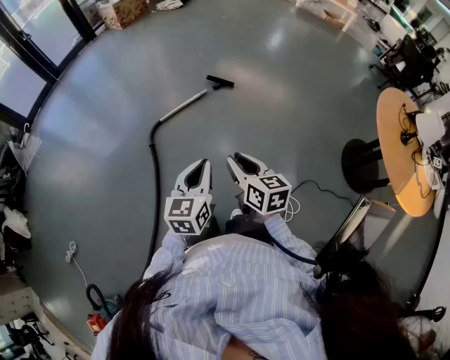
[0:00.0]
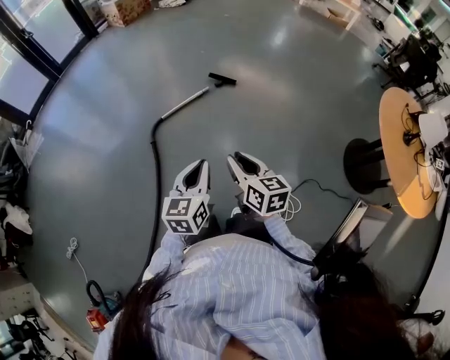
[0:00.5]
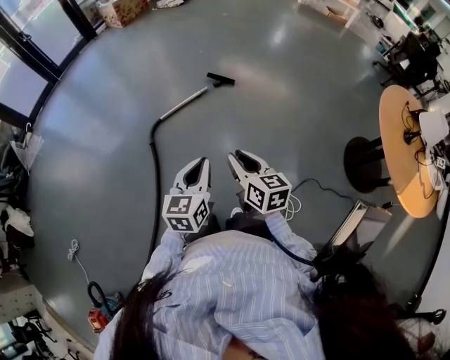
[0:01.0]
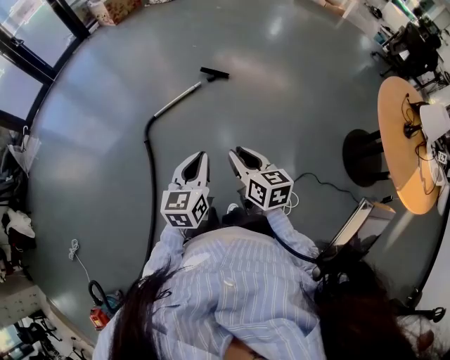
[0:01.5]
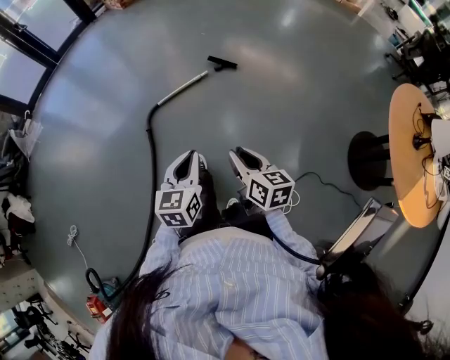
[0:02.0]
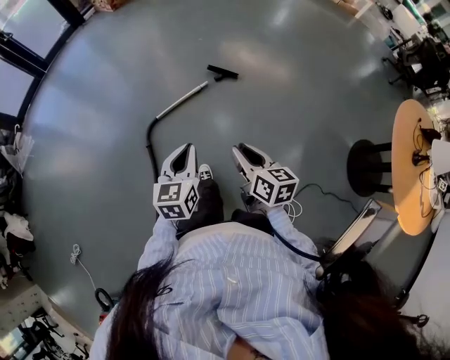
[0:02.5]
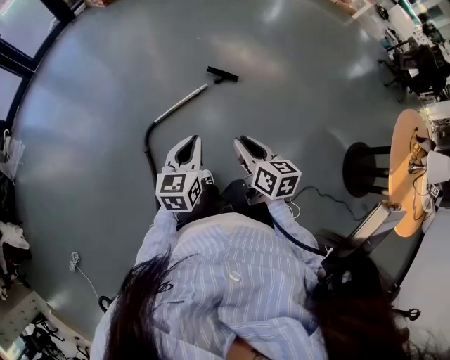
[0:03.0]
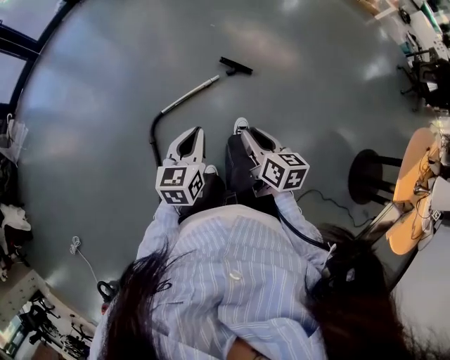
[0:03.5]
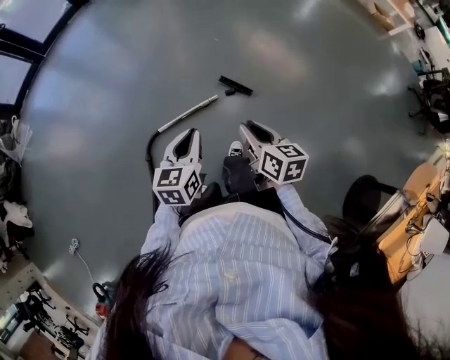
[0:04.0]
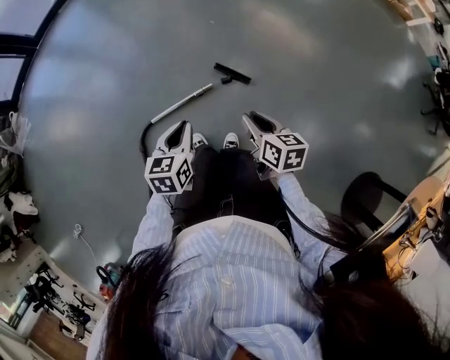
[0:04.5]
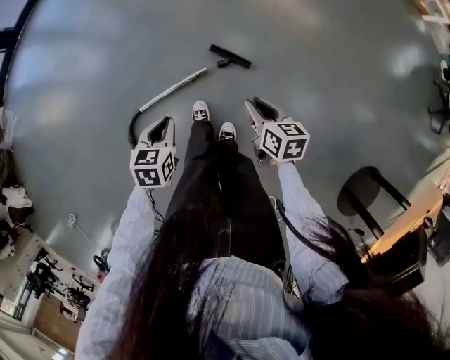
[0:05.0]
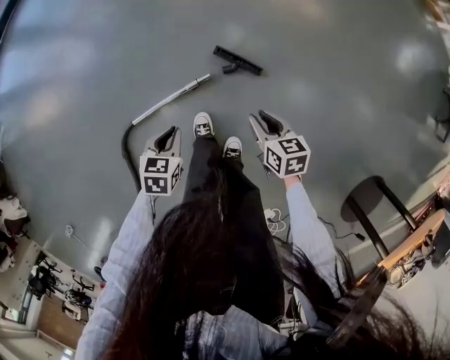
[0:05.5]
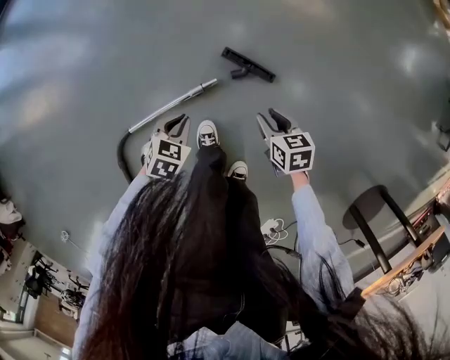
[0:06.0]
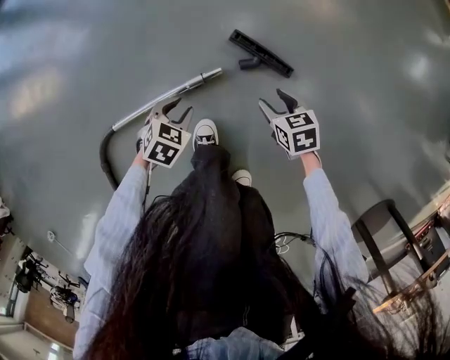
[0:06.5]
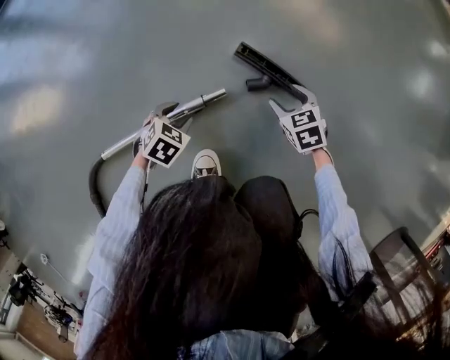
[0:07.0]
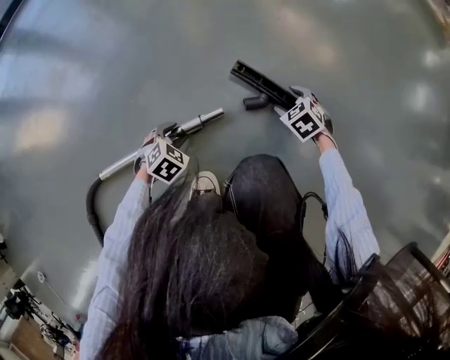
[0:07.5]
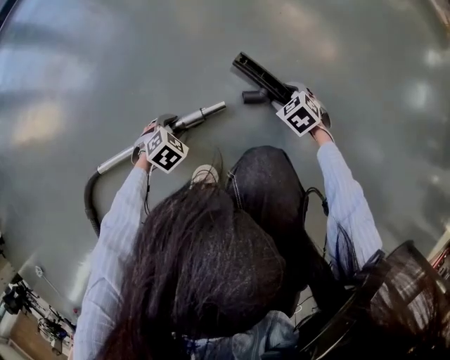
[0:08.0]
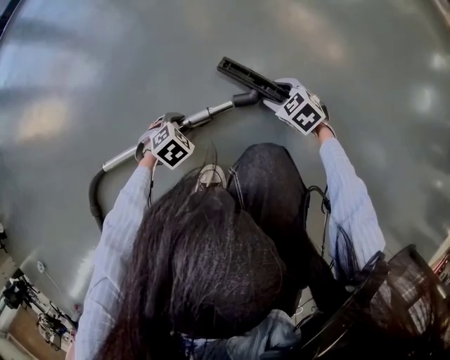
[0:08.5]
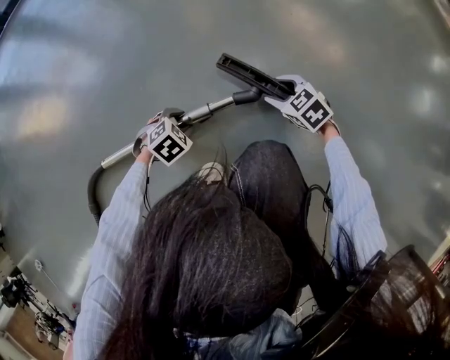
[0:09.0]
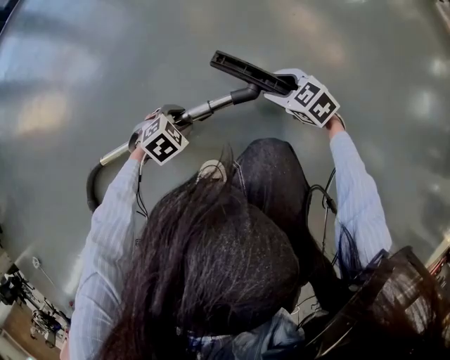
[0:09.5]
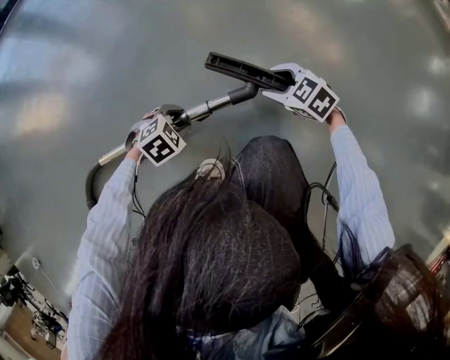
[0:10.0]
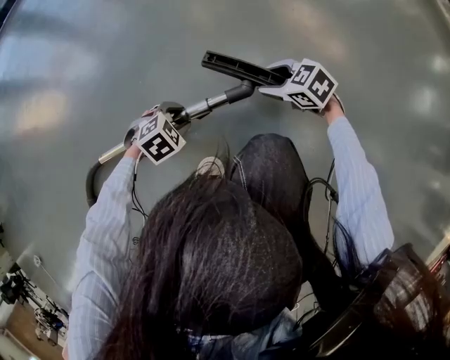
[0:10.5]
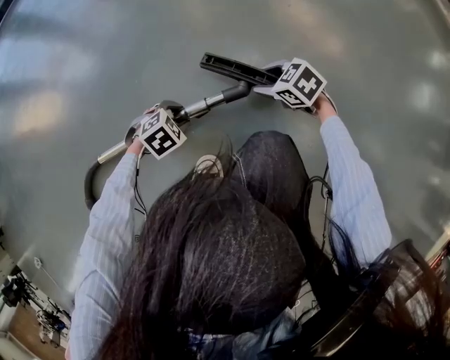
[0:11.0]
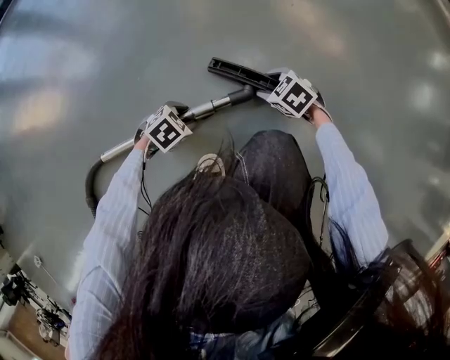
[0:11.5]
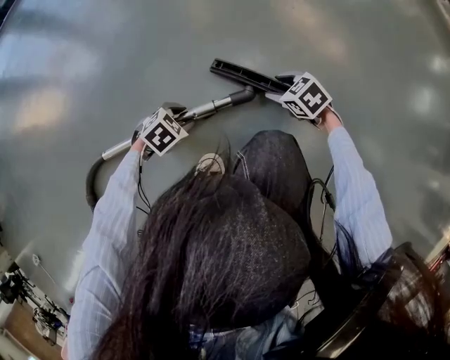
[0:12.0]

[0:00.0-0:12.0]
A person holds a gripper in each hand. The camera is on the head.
0:00.0 to 0:02.0: The left gripper shifts approximately 5 cm forward, while the right gripper heads to the right and forward, covering about 10 cm.
0:02.0 to 0:04.0: The two grippers travel together, forward, approximately 60 cm.
0:04.0 to 0:06.0: Both grippers move downward and forward, approximately 60 cm. The left gripper tilts its fingers roughly 30 degrees downward; the right gripper swivels approximately 30 degrees.
0:06.0 to 0:08.0: The two grippers go about 40 cm downward. The left gripper opens its fingers. The right gripper twists approximately 50 degrees counterclockwise, seen from behind, and opens up.
0:08.0 to 0:10.0: The right gripper changes place by roughly 10 cm, and swivels roughly 30 degrees.
0:10.0 to 0:12.0: There are only small adjustments of the grippers.

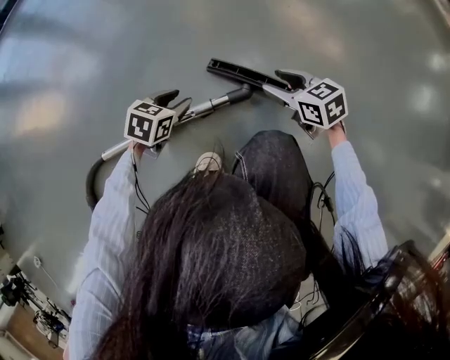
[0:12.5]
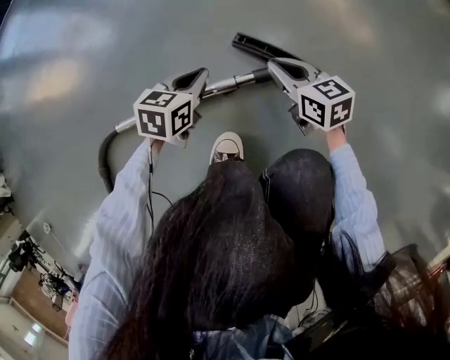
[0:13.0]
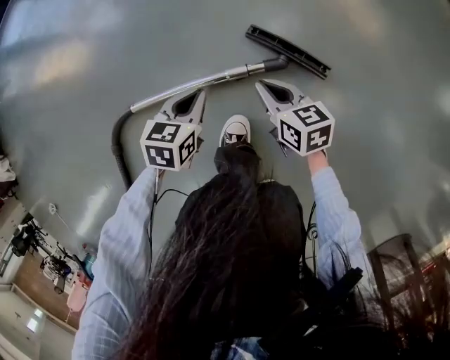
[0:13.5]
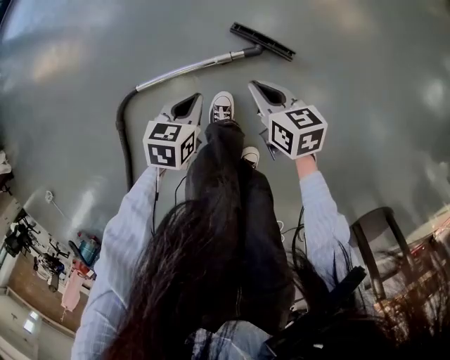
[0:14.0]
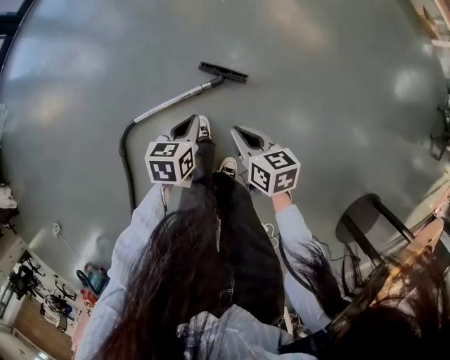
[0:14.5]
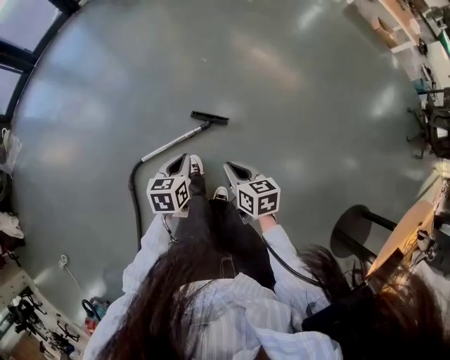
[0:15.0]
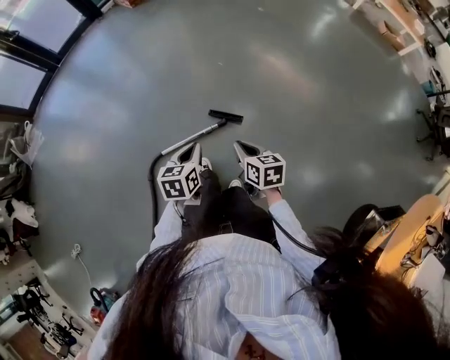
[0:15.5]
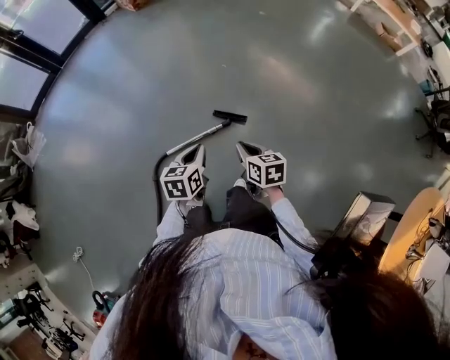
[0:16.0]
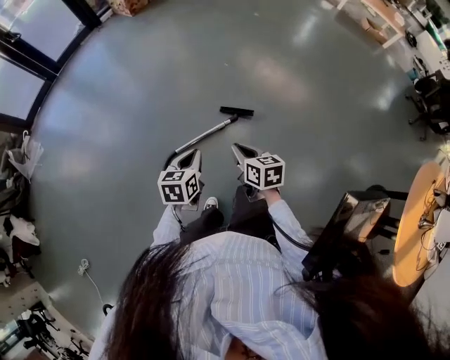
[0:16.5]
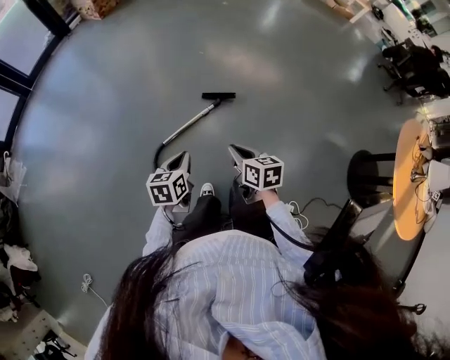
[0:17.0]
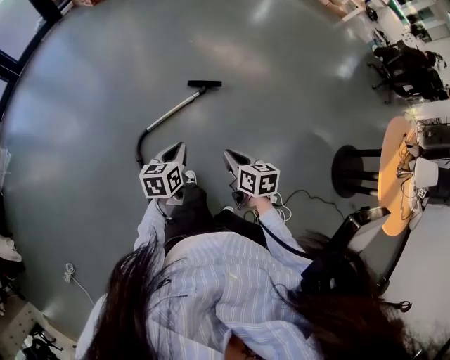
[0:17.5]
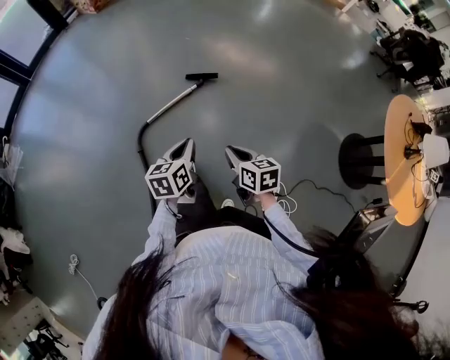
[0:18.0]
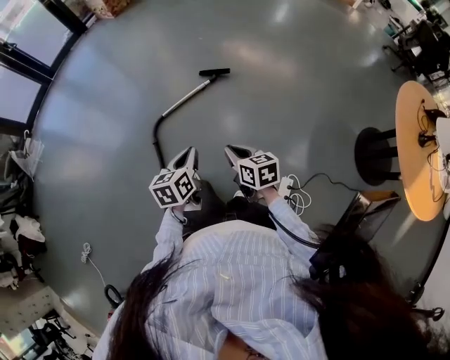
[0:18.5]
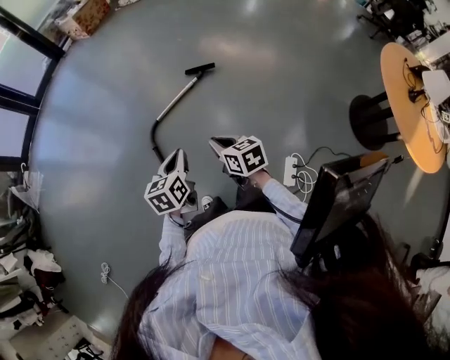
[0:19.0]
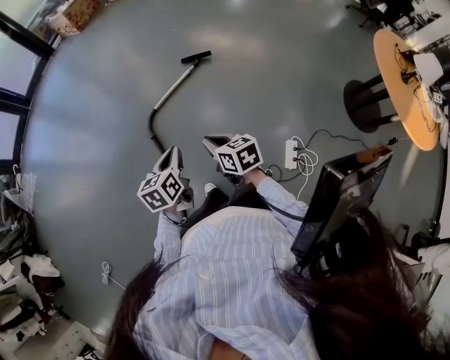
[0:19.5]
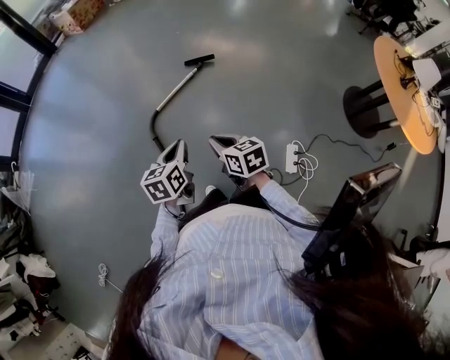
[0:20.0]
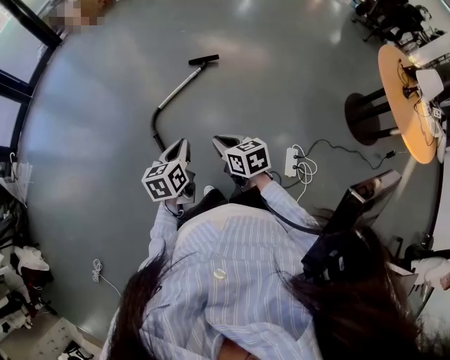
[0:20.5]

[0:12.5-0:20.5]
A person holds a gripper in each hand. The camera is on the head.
0:12.5 to 0:14.5: The left gripper heads upward, covering about 50 cm, and closes its fingers. Meanwhile the right gripper moves upward and backward, some 50 cm, swivels roughly 30 degrees, and closes up.
0:14.5 to 0:16.5: The two grippers go about 40 cm upward, backward and to the left.
0:16.5 to 0:18.5: Both grippers travel together backward, about 40 cm.
0:18.5 to 0:20.5: Both grippers move to the left, about 20 cm.

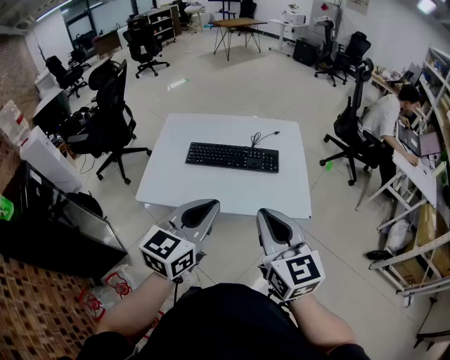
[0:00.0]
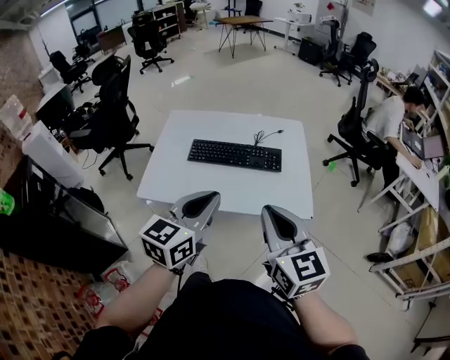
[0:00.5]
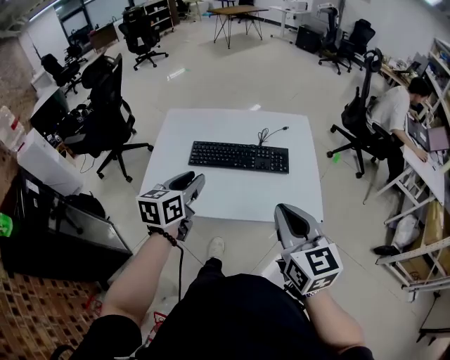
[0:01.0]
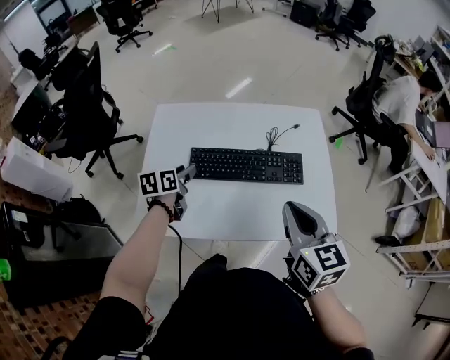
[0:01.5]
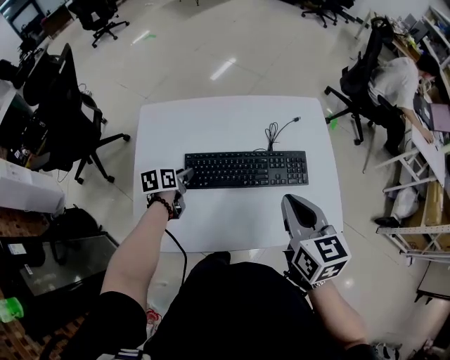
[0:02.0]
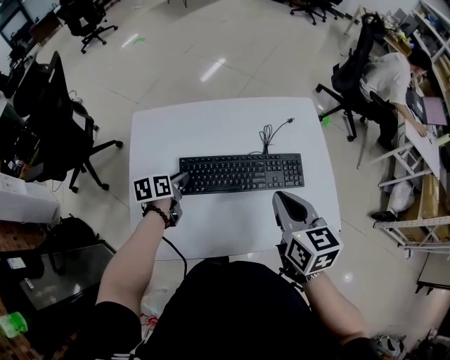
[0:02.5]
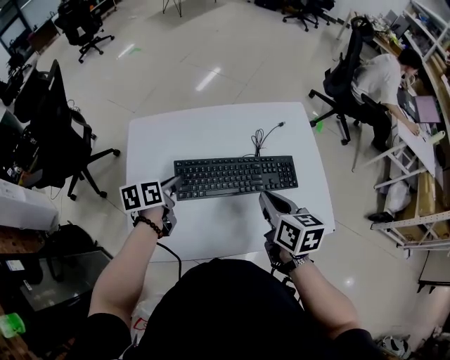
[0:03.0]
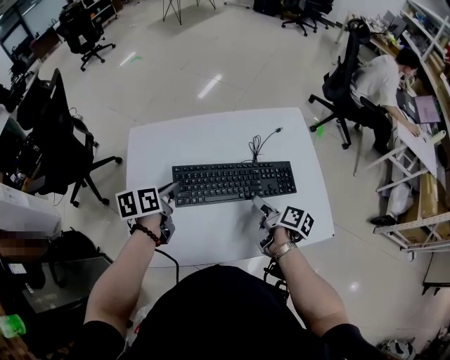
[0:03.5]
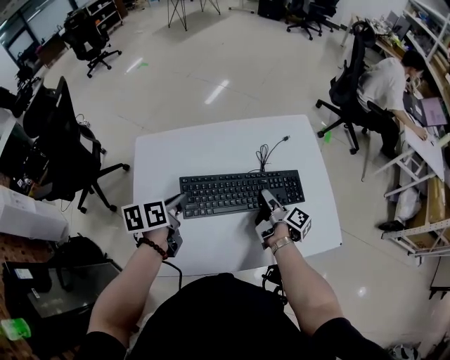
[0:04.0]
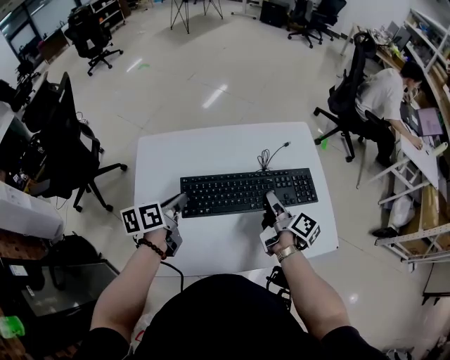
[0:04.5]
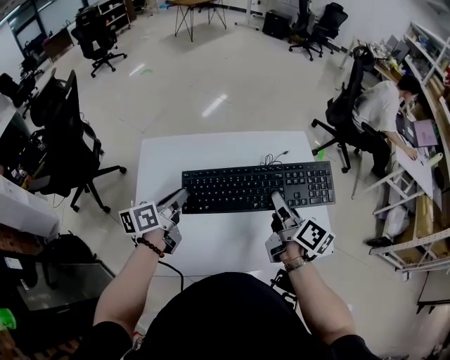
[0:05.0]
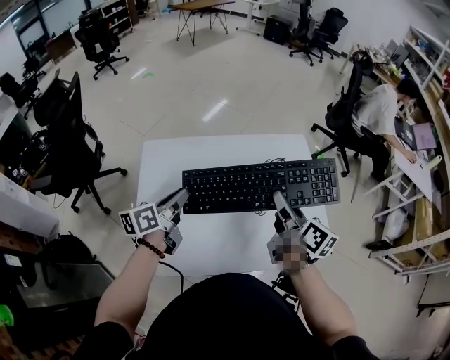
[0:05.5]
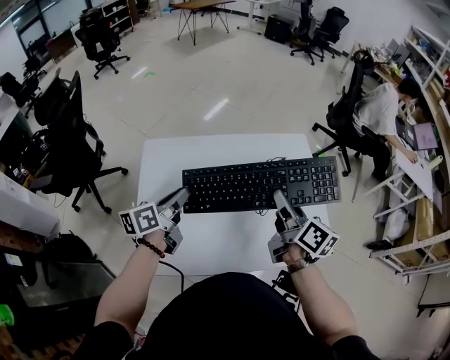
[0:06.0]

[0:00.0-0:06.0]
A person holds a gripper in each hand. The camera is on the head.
0:00.0 to 0:02.0: The left gripper travels forward, downward and to the left by about 50 cm, angles its fingers downward, by approximately 40 degrees, and opens up. The right gripper is displaced forward by approximately 25 cm, and rotates approximately 30 degrees.
0:02.0 to 0:04.0: The left gripper moves upward, approximately 10 cm, and closes up. Meanwhile the right gripper moves downward and forward, approximately 25 cm, rolls clockwise, seen from behind, by about 80 degrees, and opens its fingers.
0:04.0 to 0:06.0: The left gripper heads upward, covering roughly 5 cm, and swivels approximately 30 degrees. The right gripper travels upward by approximately 20 cm, and rolls counterclockwise, seen from behind, by approximately 40 degrees.
